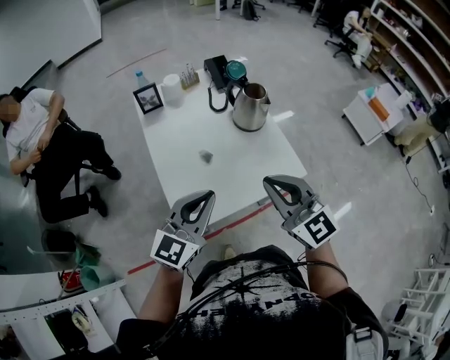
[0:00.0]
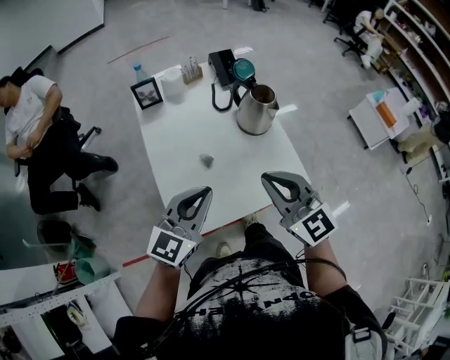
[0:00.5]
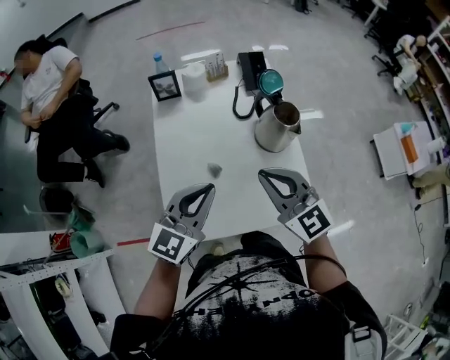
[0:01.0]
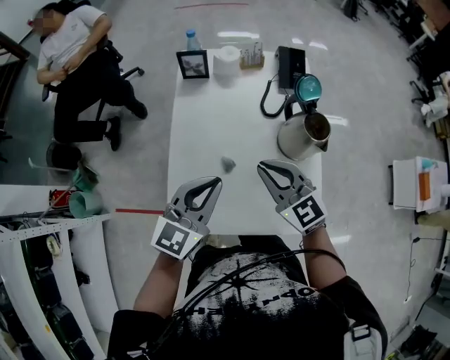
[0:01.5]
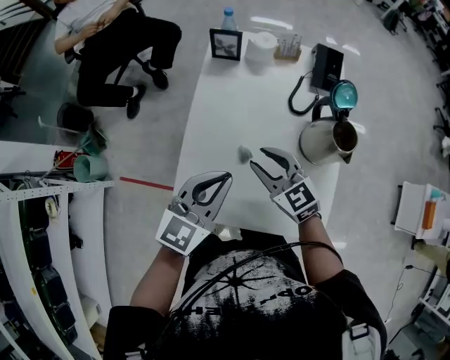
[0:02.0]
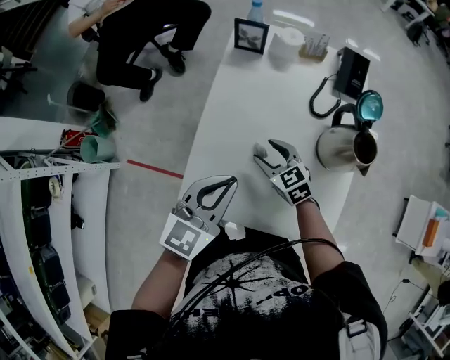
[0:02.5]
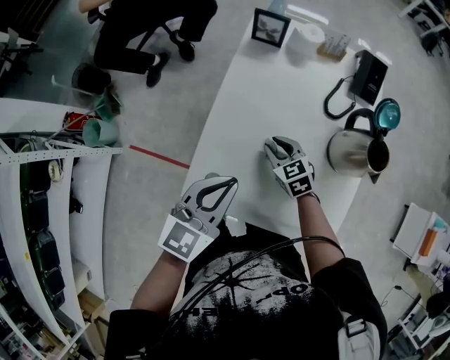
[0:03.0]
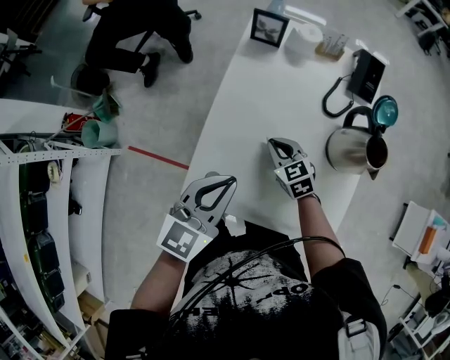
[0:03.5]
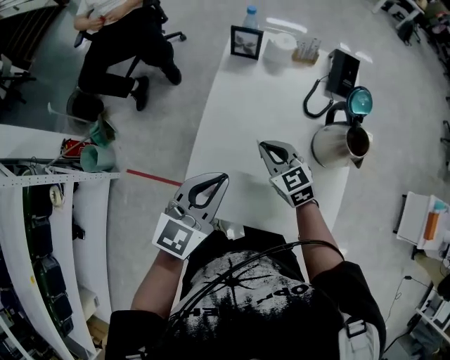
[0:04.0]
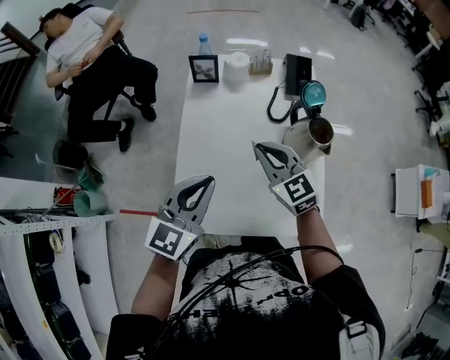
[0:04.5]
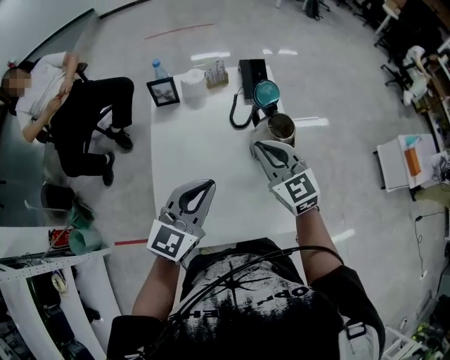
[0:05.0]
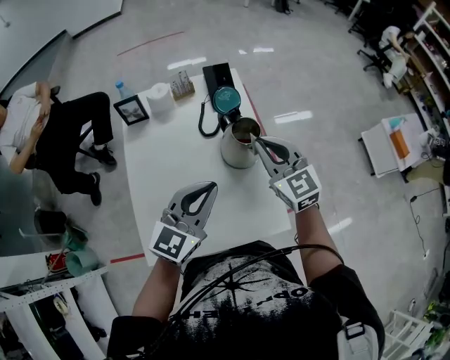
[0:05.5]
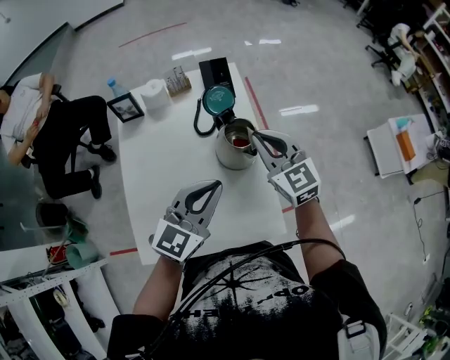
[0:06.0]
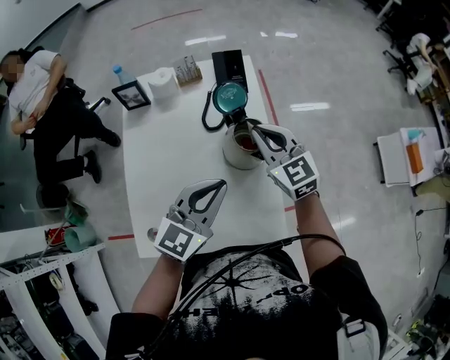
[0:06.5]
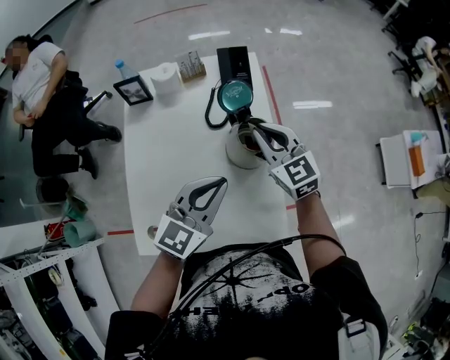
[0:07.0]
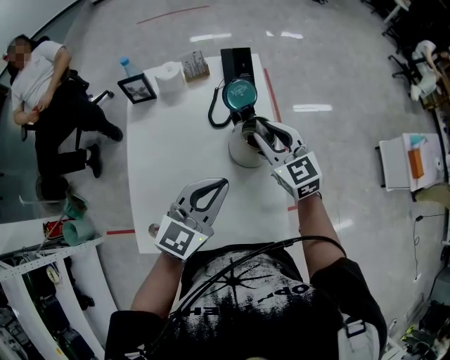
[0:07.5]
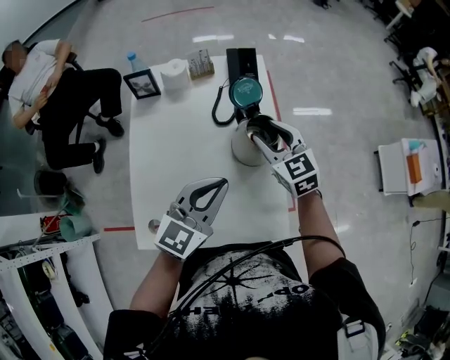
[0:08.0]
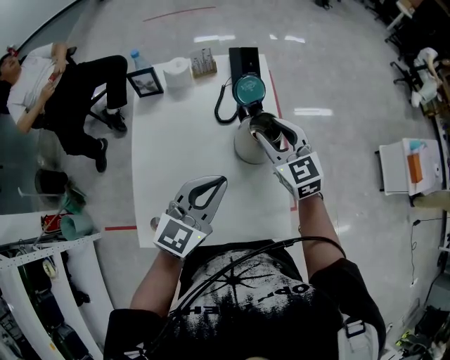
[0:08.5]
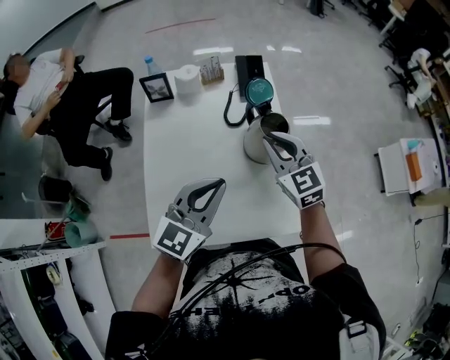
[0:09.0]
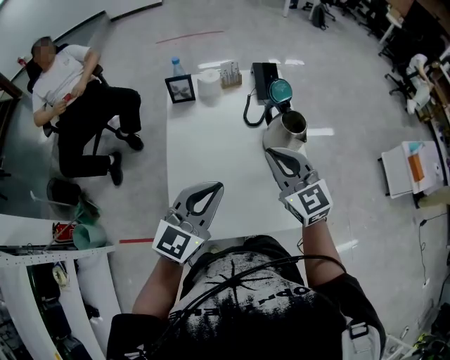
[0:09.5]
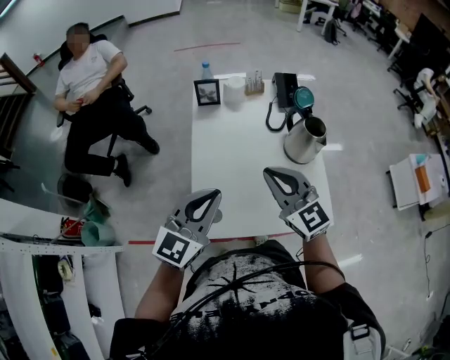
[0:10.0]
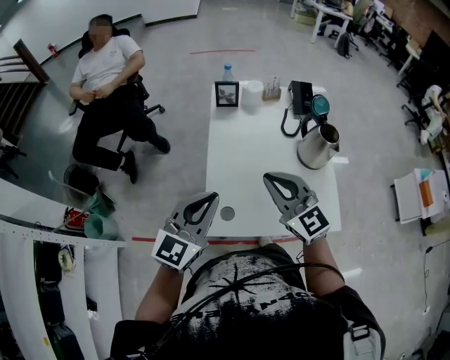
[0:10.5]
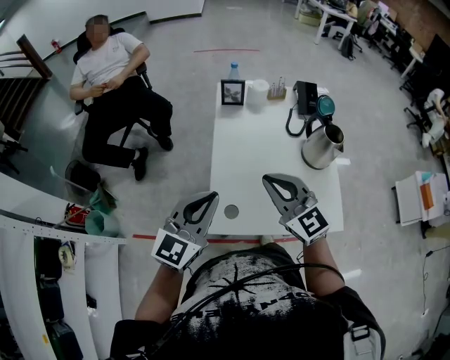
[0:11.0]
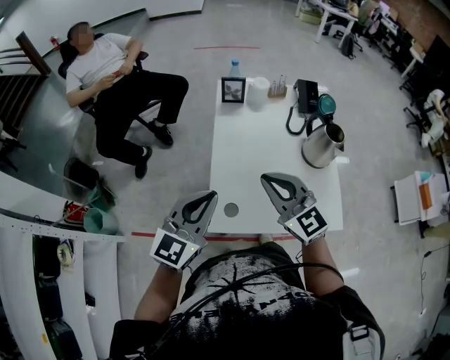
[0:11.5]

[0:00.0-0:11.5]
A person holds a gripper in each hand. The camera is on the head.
0:00.0 to 0:02.0: The left gripper shifts by approximately 15 cm, and swivels about 30 degrees; the right gripper moves roughly 30 cm, changes its angle by approximately 40 degrees, and opens its fingers.
0:02.0 to 0:04.0: The right gripper moves about 15 cm downward and comes back, and closes its fingers.
0:04.0 to 0:06.0: The right gripper moves about 30 cm, and turns by roughly 30 degrees. Meanwhile the left gripper moves about 25 cm, and changes its angle by about 30 degrees.
0:06.0 to 0:07.5: The right gripper moves some 5 cm, and opens.
0:07.5 to 0:09.5: The left gripper heads to the left and backward, covering about 20 cm. Meanwhile the right gripper moves backward, to the left and upward, roughly 20 cm, and closes its fingers.
0:09.5 to 0:11.5: The left gripper is displaced to the left by some 20 cm, while the right gripper shifts approximately 20 cm to the left and backward.

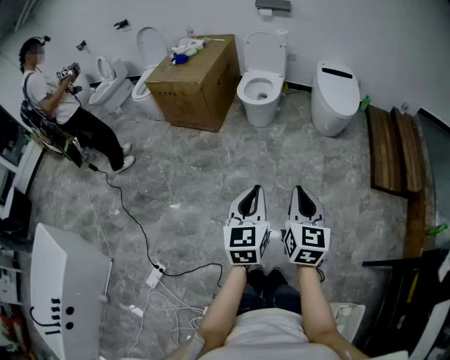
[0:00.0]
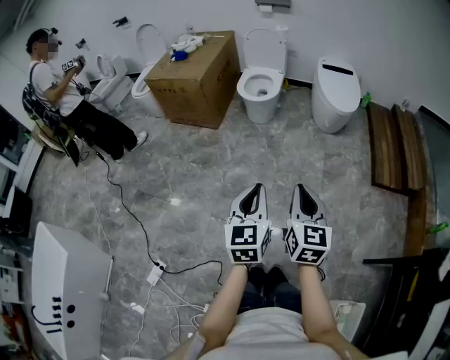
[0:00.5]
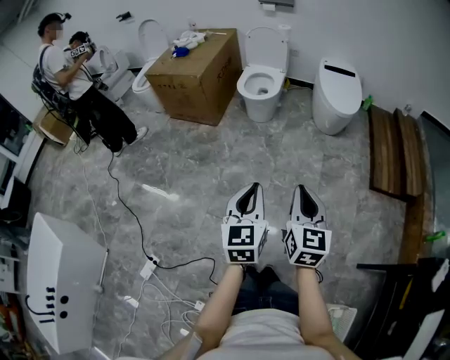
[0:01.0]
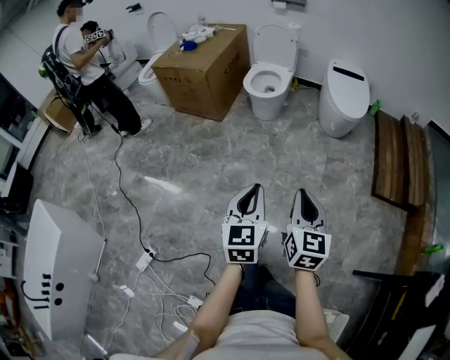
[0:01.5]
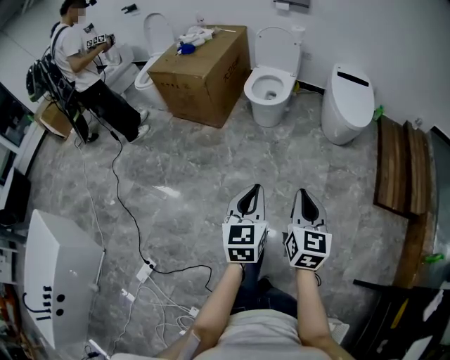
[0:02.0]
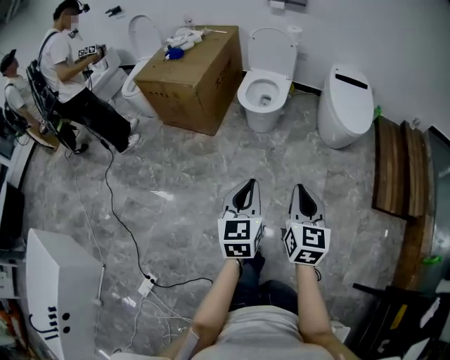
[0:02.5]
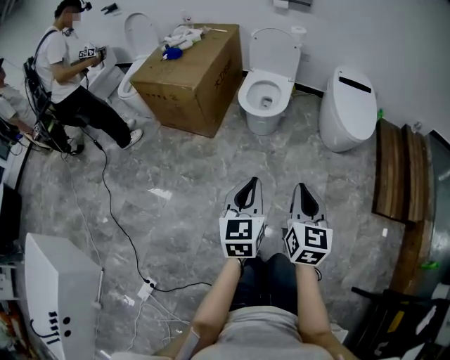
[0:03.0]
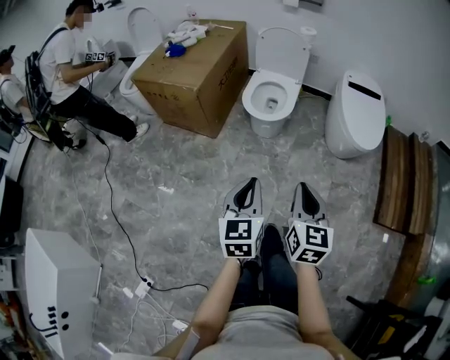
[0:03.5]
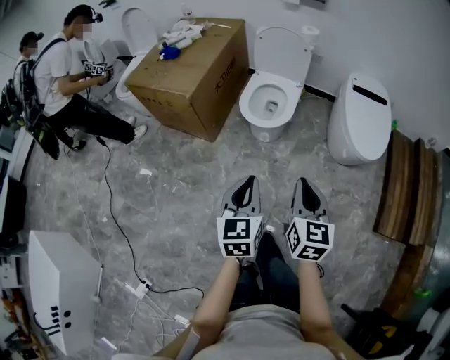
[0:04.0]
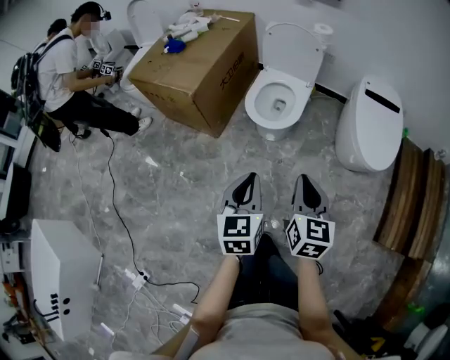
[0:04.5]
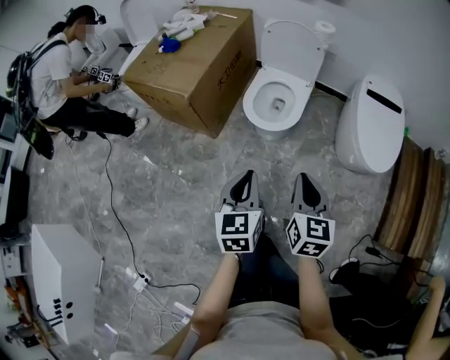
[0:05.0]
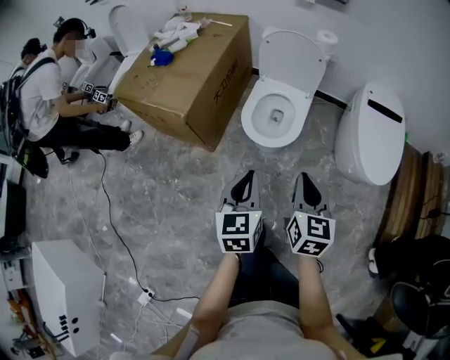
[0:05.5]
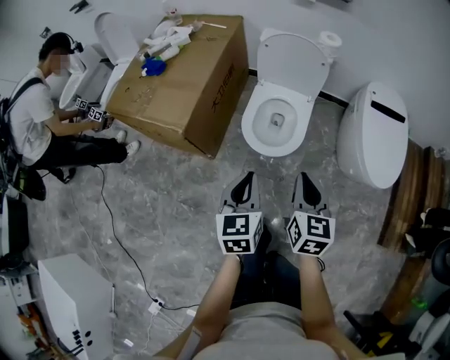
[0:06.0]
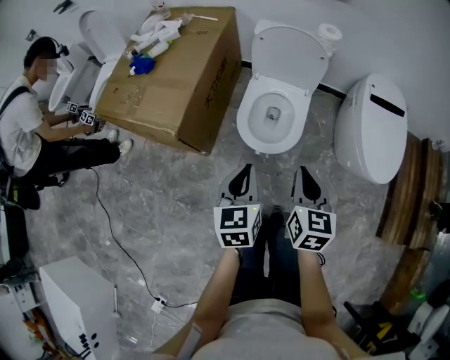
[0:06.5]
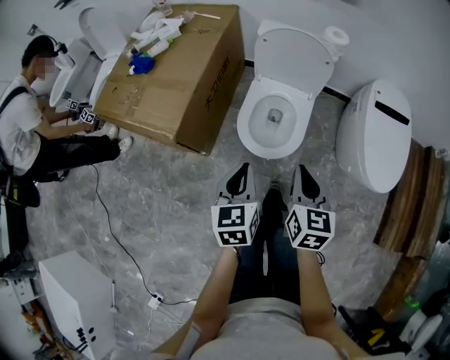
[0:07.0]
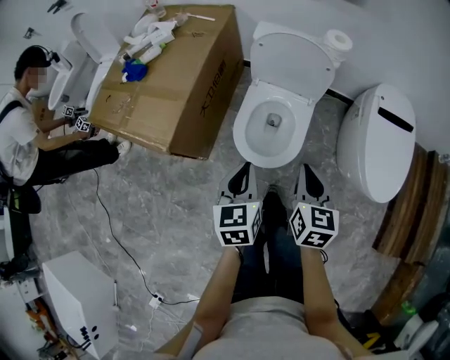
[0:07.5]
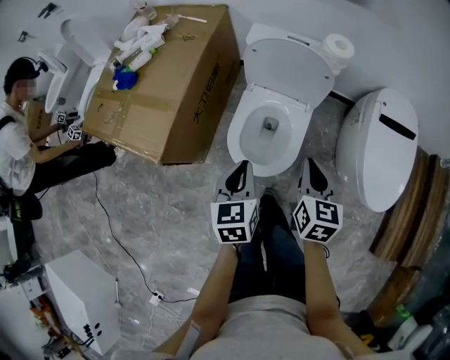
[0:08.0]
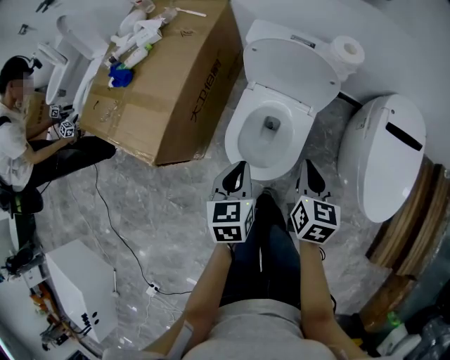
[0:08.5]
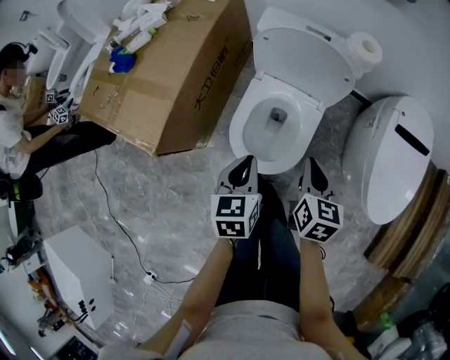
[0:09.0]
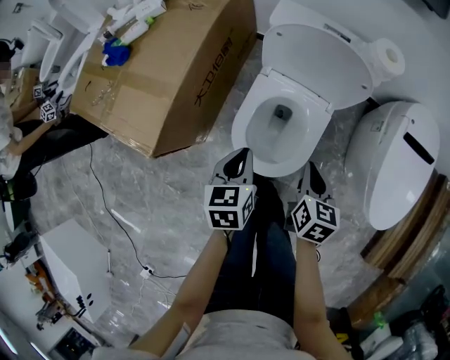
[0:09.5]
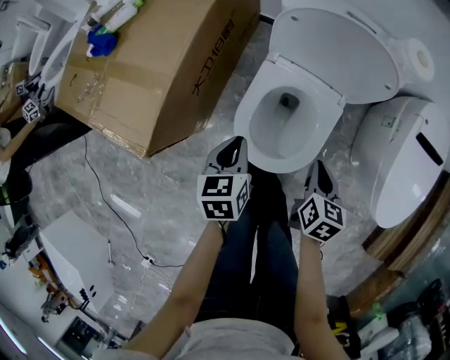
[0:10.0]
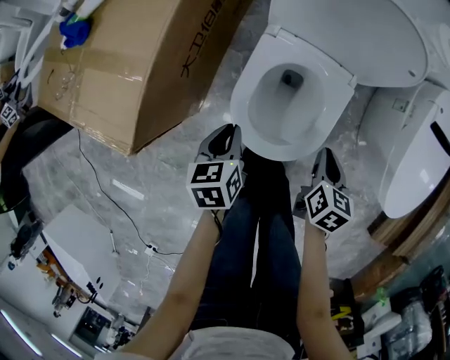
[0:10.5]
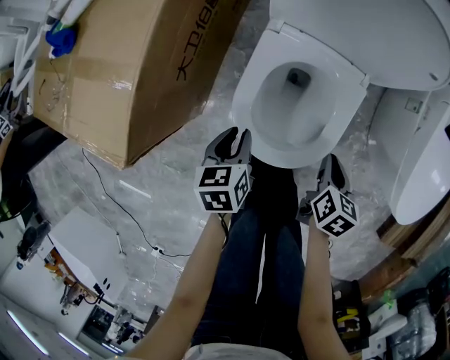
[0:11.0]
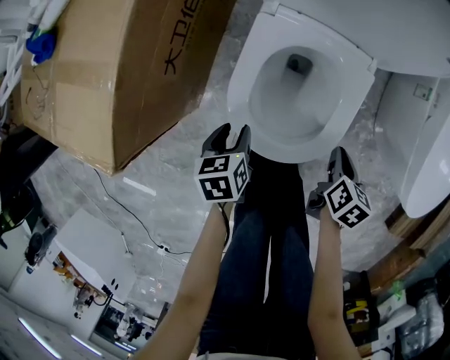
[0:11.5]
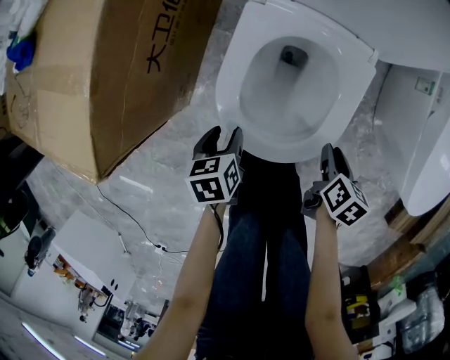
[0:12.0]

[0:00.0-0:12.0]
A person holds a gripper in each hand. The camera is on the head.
0:00.0 to 0:02.0: Both grippers move forward, some 10 cm.
0:02.0 to 0:04.0: The two grippers go approximately 35 cm forward.
0:04.0 to 0:06.0: Both grippers move forward, approximately 30 cm.
0:06.0 to 0:08.0: The two grippers go roughly 25 cm forward.
0:08.0 to 0:10.0: The left gripper moves downward, forward and to the left, some 20 cm; the right gripper shifts about 20 cm downward.
0:10.0 to 0:12.0: The grippers both shift downward by some 25 cm. The left gripper opens. The right gripper changes its angle by some 20 degrees, and opens its fingers.

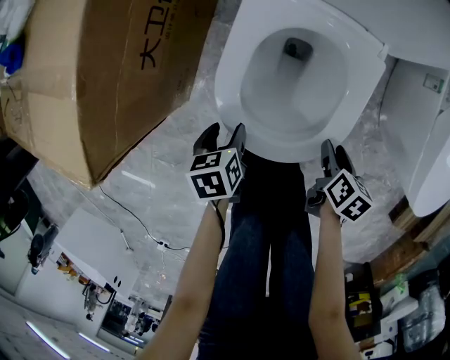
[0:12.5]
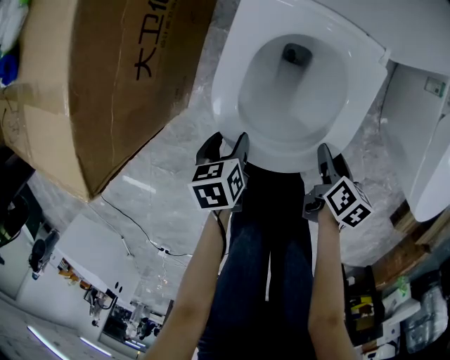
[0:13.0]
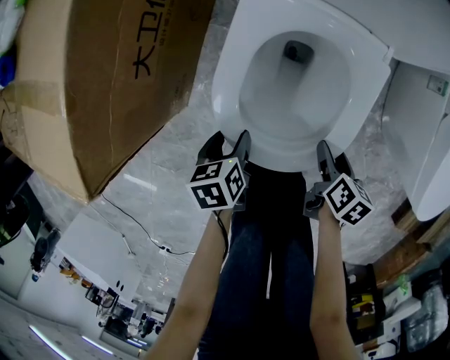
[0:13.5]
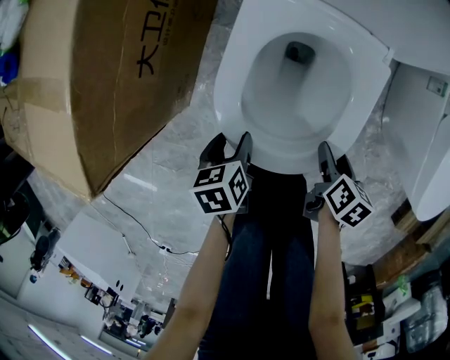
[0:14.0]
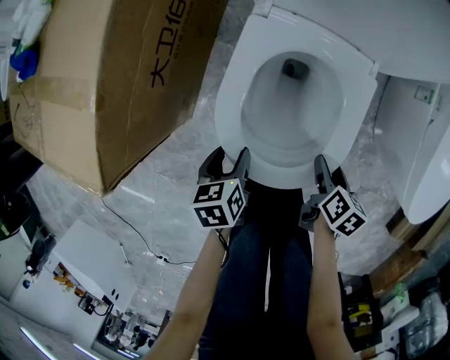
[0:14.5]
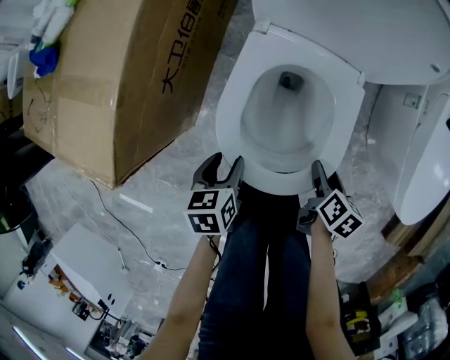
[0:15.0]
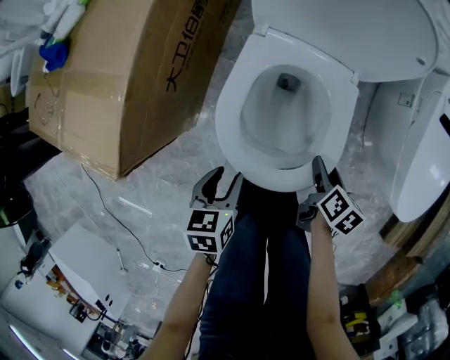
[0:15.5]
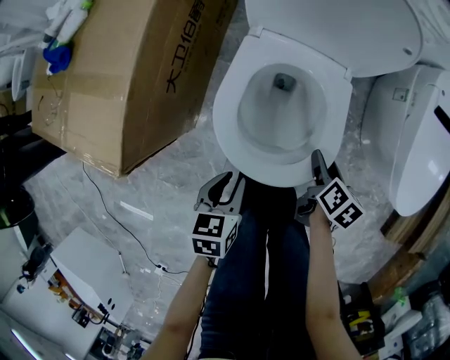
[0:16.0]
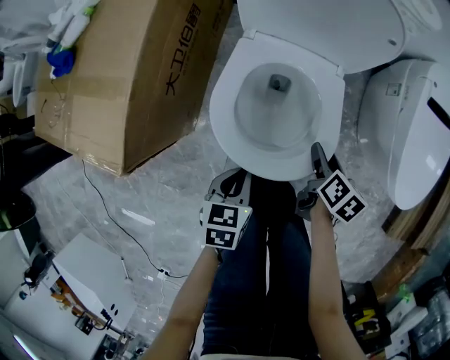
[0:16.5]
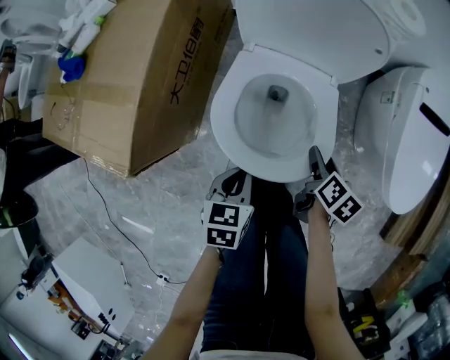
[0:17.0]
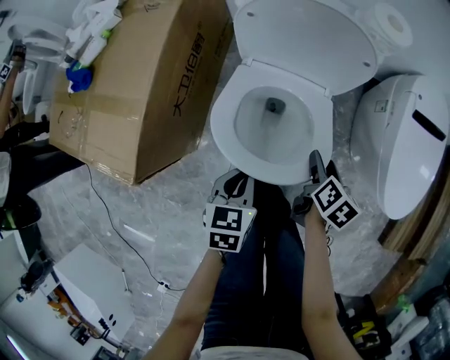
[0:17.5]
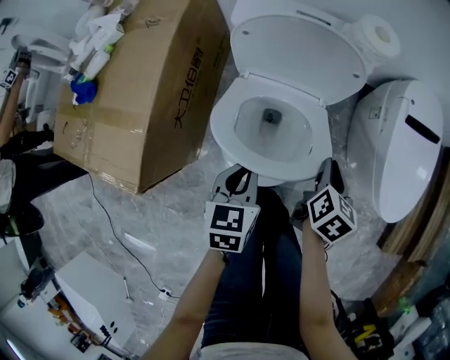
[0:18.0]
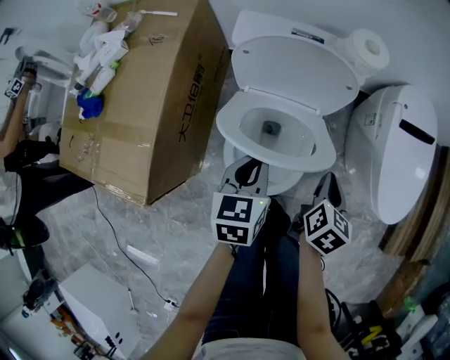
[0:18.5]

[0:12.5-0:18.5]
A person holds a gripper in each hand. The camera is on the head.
0:12.5 to 0:14.5: There are only small adjustments of the grippers.
0:14.5 to 0:16.5: The left gripper heads upward and to the right, covering some 15 cm, rotates about 30 degrees, and closes; the right gripper is displaced upward by approximately 10 cm.
0:16.5 to 0:18.5: The right gripper goes some 15 cm upward, swivels approximately 20 degrees, and closes its fingers. The left gripper heads forward and upward, covering approximately 25 cm.
